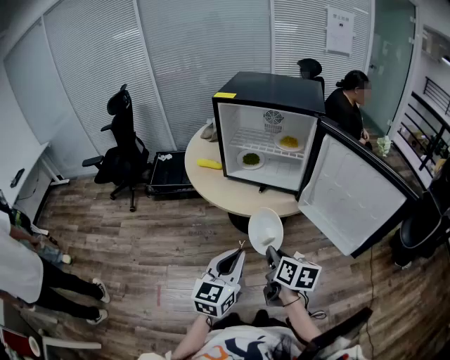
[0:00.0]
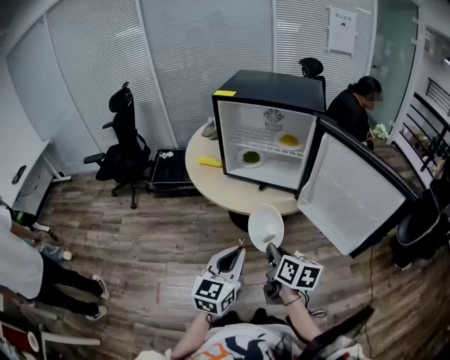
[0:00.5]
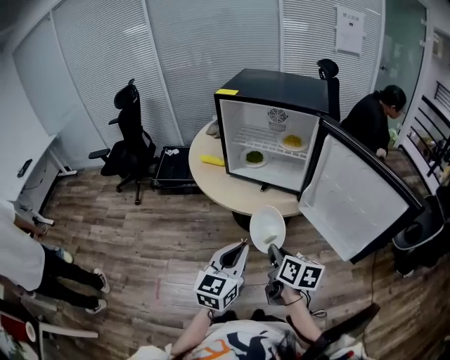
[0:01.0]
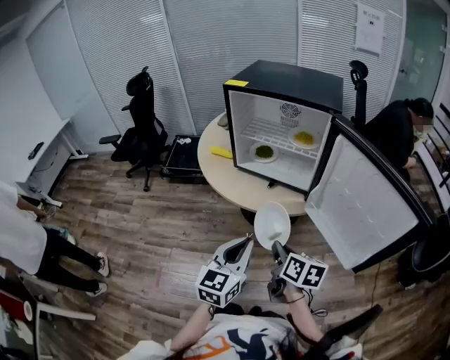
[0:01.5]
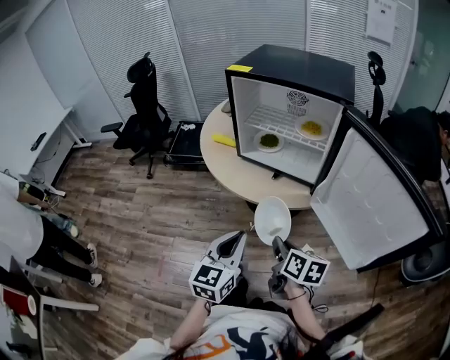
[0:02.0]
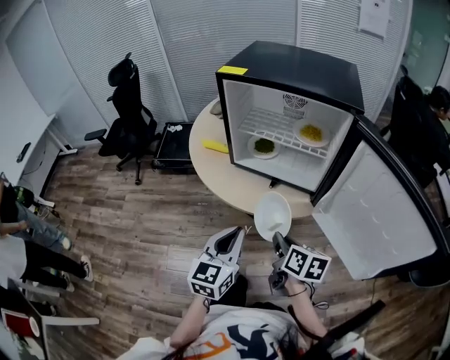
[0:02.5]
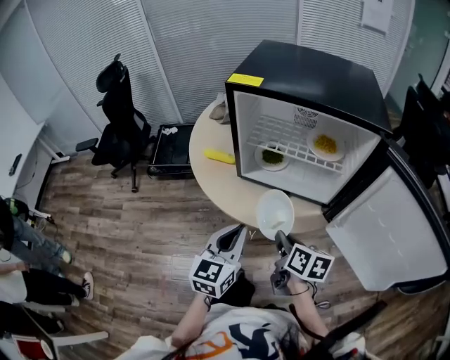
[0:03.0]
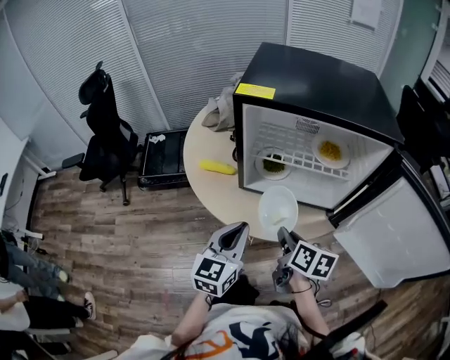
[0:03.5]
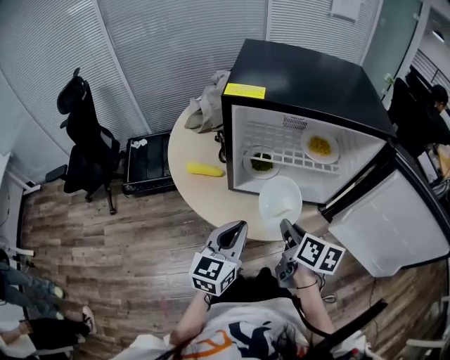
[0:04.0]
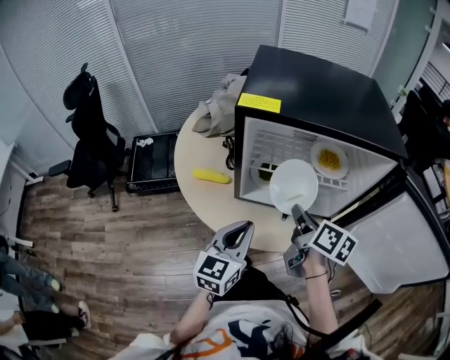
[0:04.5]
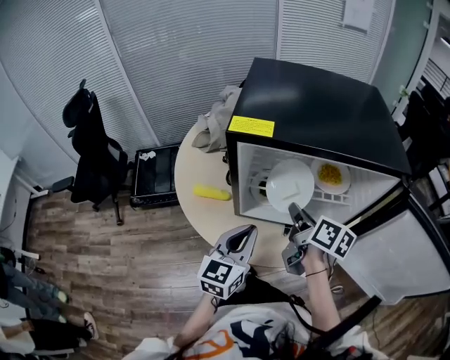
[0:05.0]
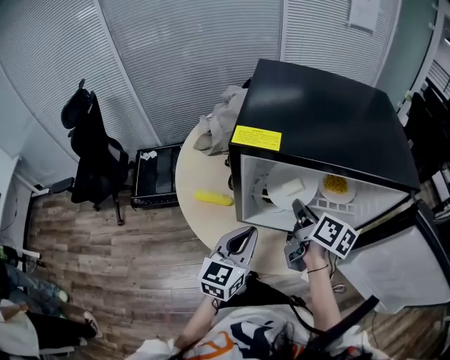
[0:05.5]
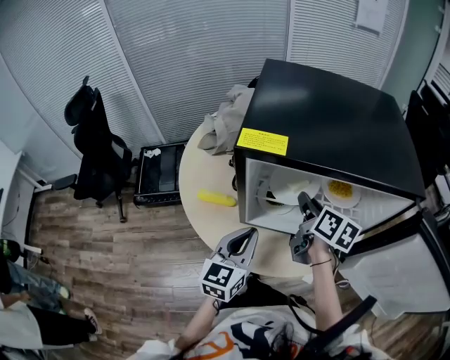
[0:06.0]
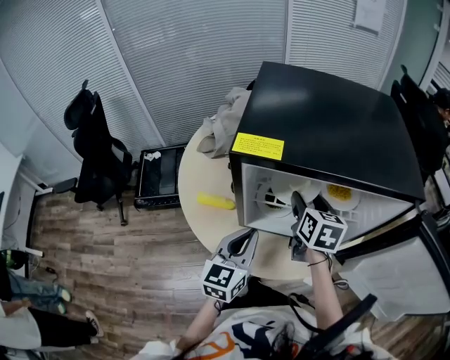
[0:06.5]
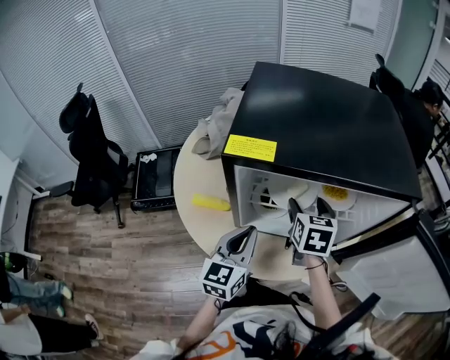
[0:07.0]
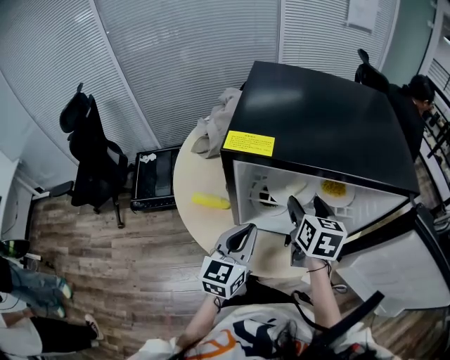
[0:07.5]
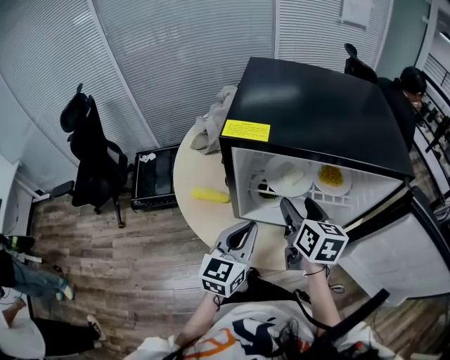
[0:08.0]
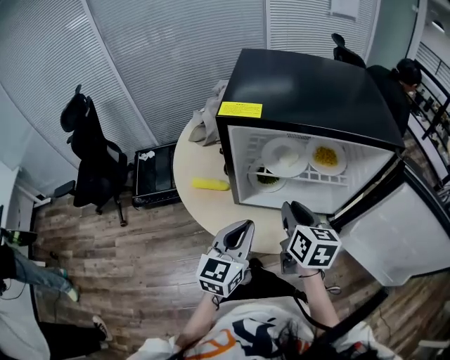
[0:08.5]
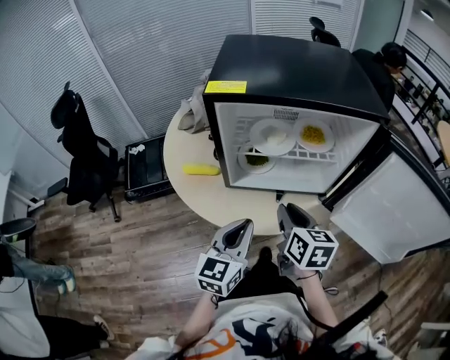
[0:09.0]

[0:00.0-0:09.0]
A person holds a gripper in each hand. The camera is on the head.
0:00.0 to 0:02.0: The right gripper moves some 5 cm; the left gripper moves some 5 cm.
0:02.0 to 0:04.5: The right gripper is displaced forward by about 30 cm, and swivels roughly 20 degrees, while the left gripper travels forward and to the left by some 30 cm, and changes its angle by approximately 20 degrees.
0:04.5 to 0:07.0: The grippers both shift forward by about 10 cm. The right gripper turns by roughly 40 degrees, and opens.
0:07.0 to 0:09.0: The two grippers go about 15 cm backward. The right gripper swivels roughly 20 degrees, and closes its fingers.

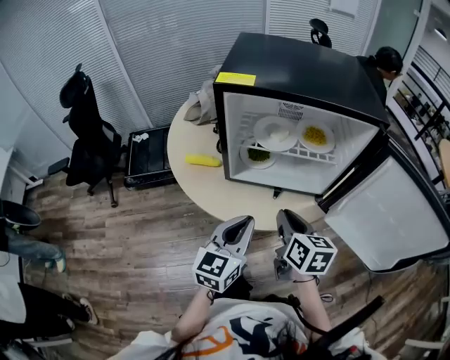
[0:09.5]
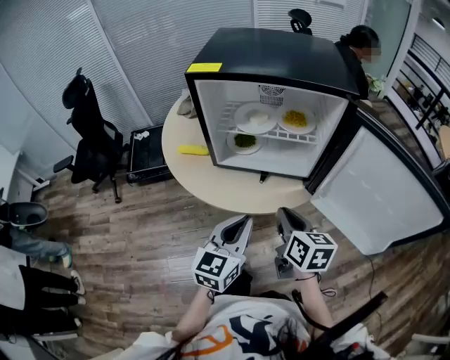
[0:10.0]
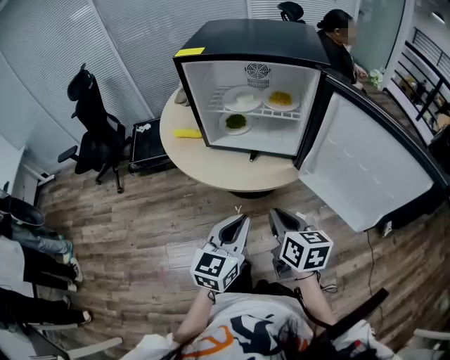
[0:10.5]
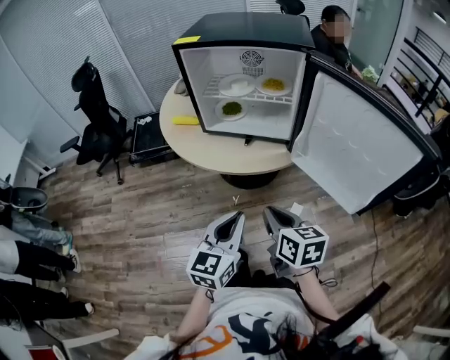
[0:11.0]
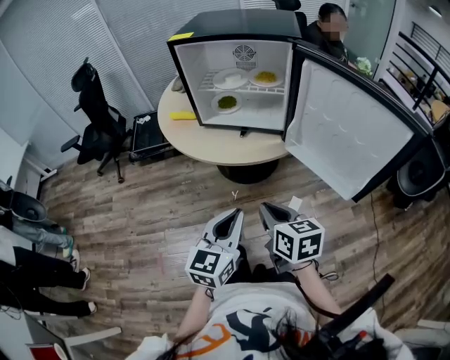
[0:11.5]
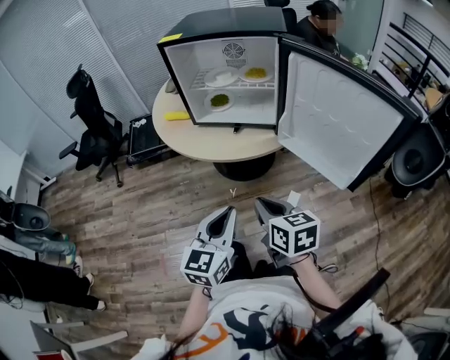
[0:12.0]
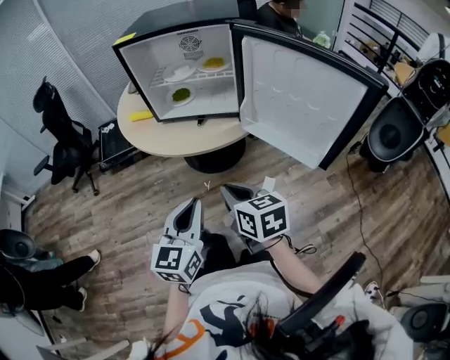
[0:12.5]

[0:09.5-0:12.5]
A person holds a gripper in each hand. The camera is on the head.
0:09.5 to 0:11.0: The grippers both shift backward and to the right by approximately 25 cm.
0:11.0 to 0:12.5: The left gripper moves roughly 5 cm.

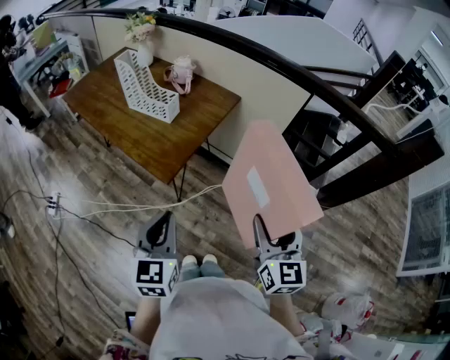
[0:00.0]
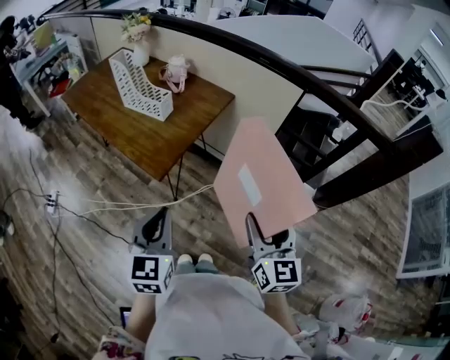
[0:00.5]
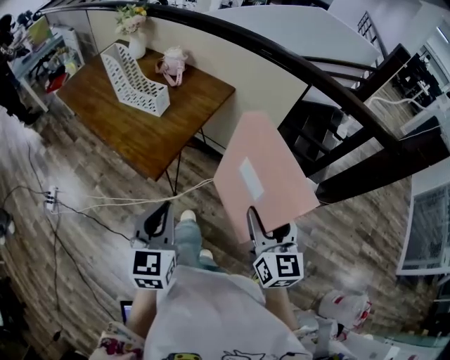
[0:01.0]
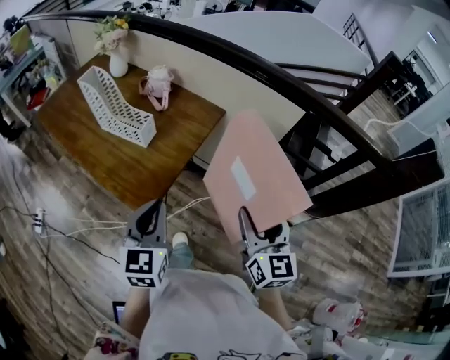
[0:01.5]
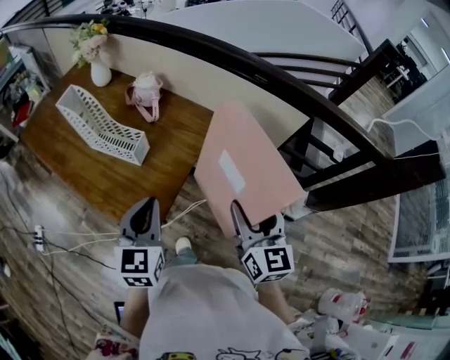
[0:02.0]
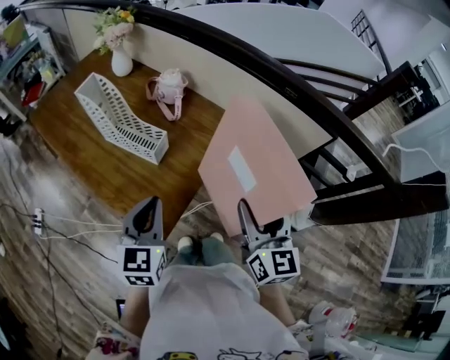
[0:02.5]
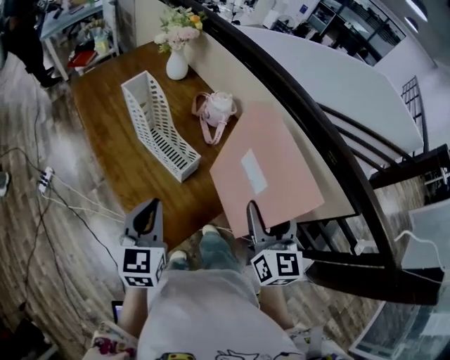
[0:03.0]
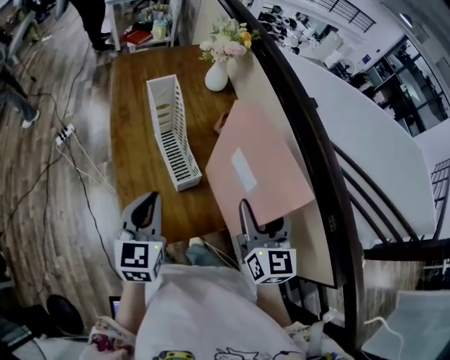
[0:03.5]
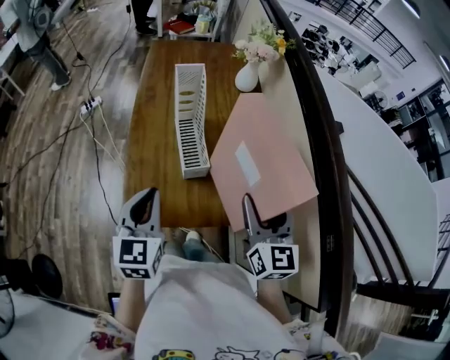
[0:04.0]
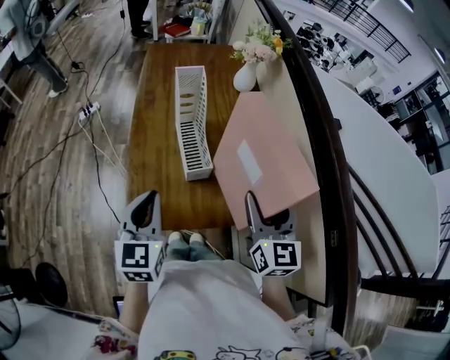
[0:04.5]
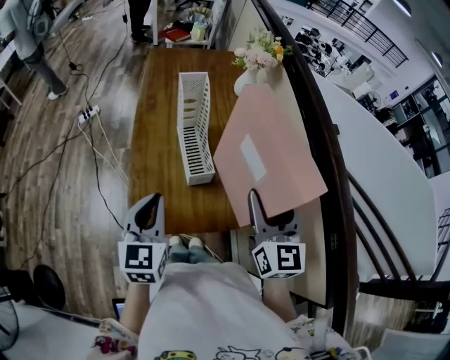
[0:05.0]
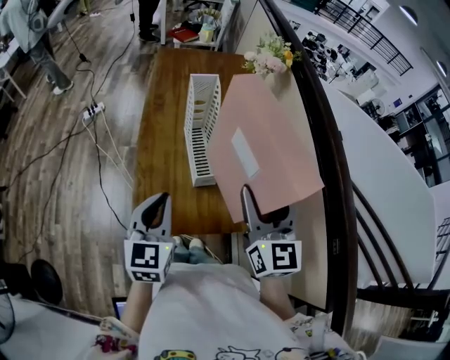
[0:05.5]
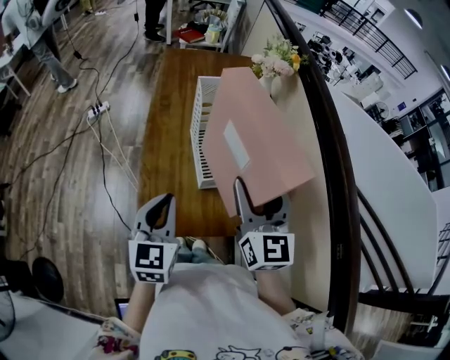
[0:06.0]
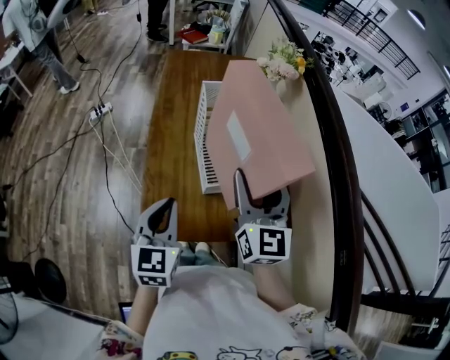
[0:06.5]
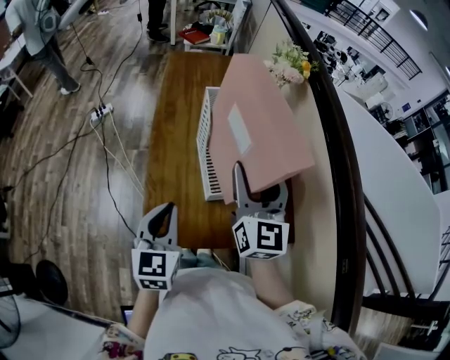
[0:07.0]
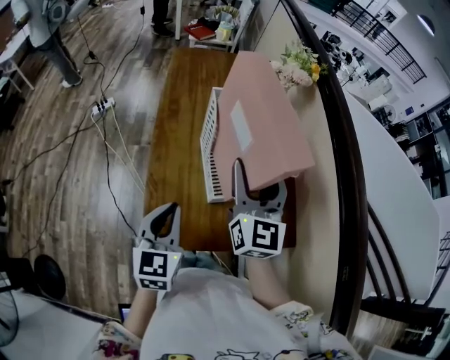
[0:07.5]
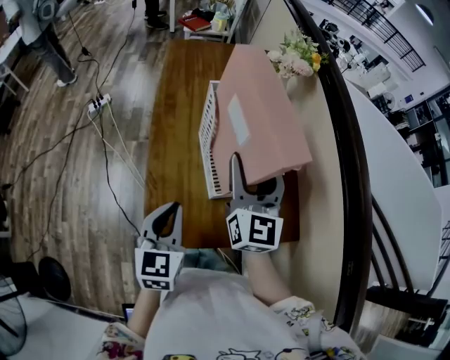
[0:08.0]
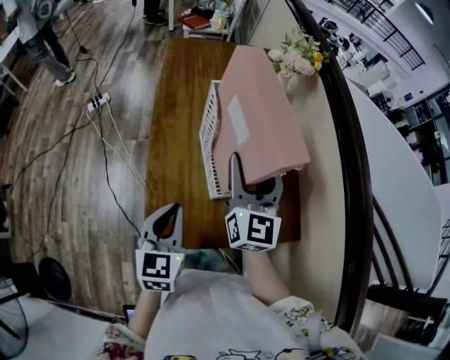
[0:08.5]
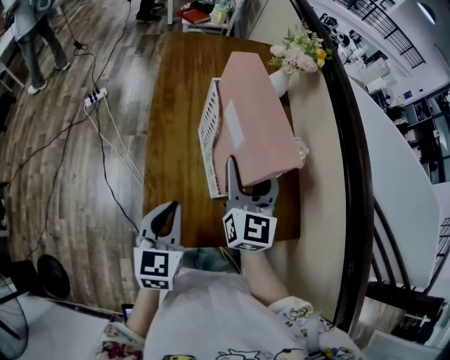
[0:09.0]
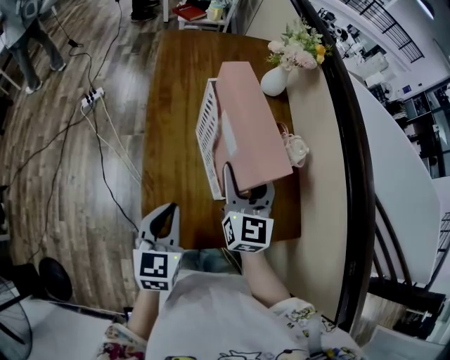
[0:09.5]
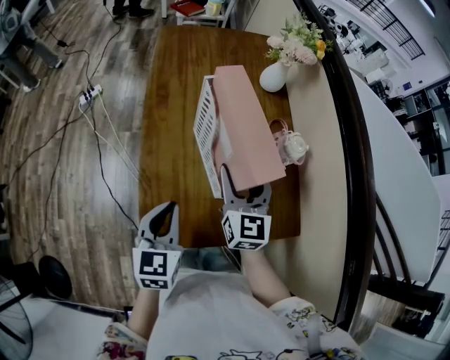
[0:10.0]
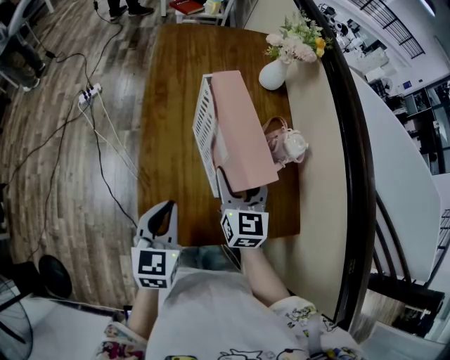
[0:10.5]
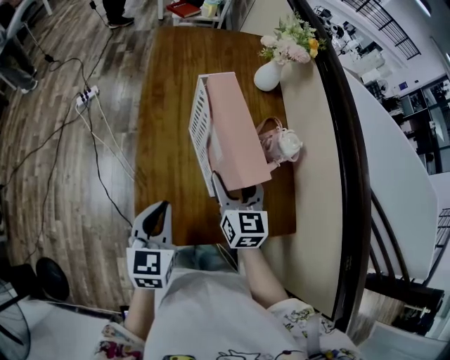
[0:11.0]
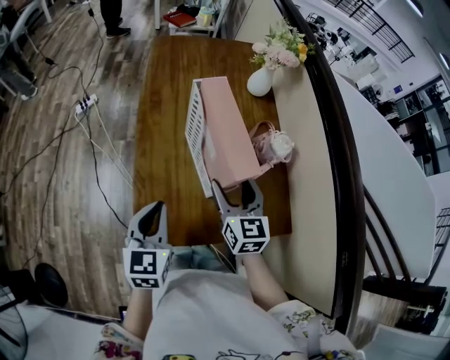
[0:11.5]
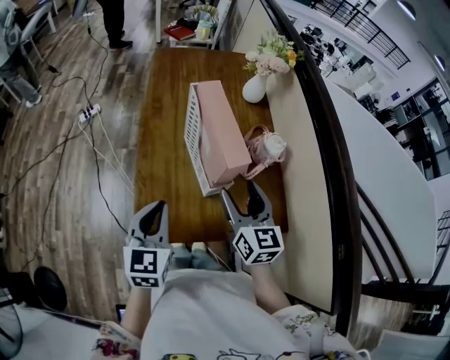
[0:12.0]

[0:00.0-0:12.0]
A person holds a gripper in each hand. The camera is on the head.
0:00.0 to 0:02.0: The grippers both shift forward by approximately 25 cm.
0:02.0 to 0:04.0: The right gripper shifts by roughly 30 cm, and swivels some 60 degrees. Meanwhile the left gripper shifts by some 10 cm, and changes its angle by approximately 60 degrees.
0:04.0 to 0:06.0: The right gripper moves to the left and upward, approximately 10 cm.
0:06.0 to 0:08.0: The right gripper travels forward by some 10 cm. The left gripper shifts by some 5 cm.
0:08.0 to 0:10.0: The right gripper is displaced downward by some 10 cm.
0:10.0 to 0:12.0: The left gripper changes place by some 5 cm, while the right gripper is displaced backward by about 10 cm.

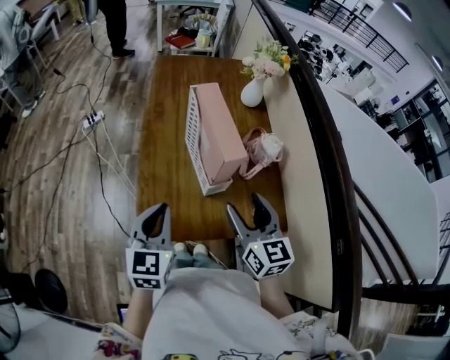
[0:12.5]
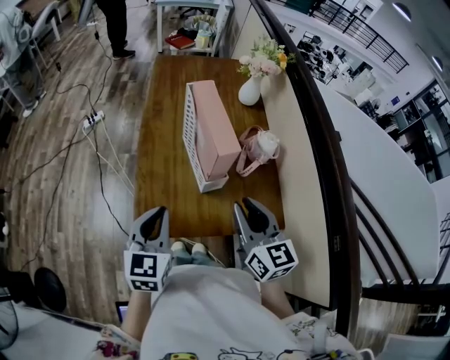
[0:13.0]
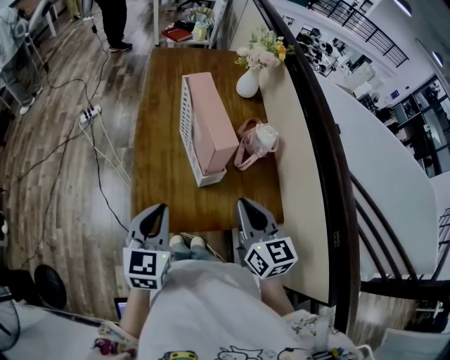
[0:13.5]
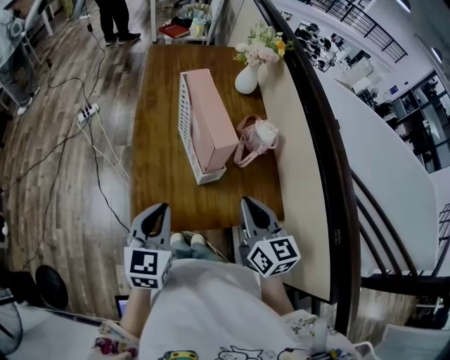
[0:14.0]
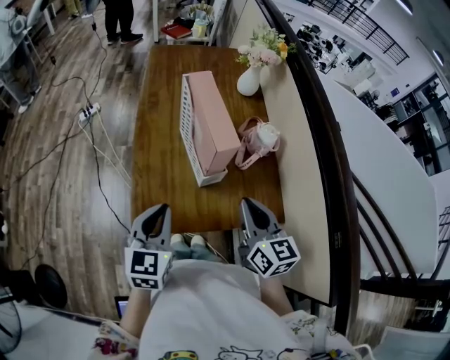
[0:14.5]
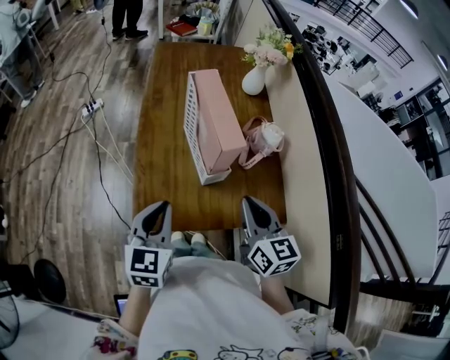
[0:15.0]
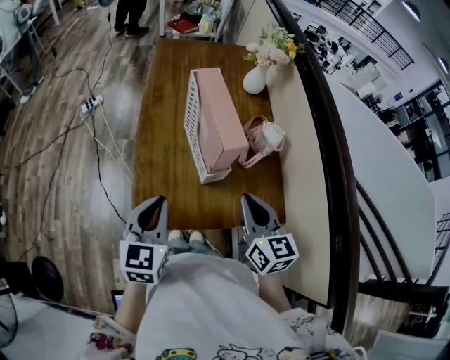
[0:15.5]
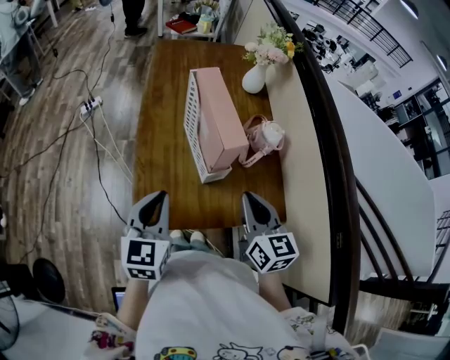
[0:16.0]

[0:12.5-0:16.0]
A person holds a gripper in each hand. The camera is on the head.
0:12.5 to 0:14.5: The right gripper closes its fingers.
0:14.5 to 0:16.0: The grippers stay close to where they were, moving slightly.
